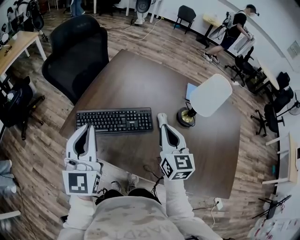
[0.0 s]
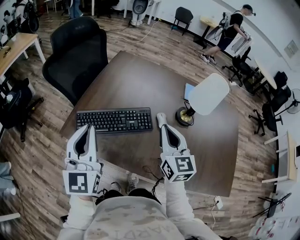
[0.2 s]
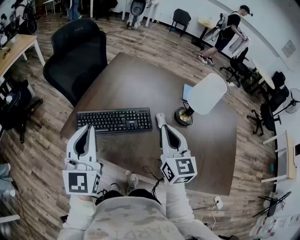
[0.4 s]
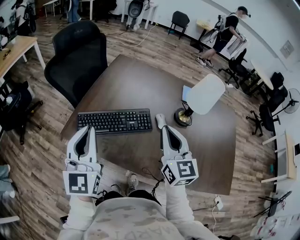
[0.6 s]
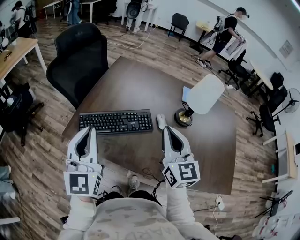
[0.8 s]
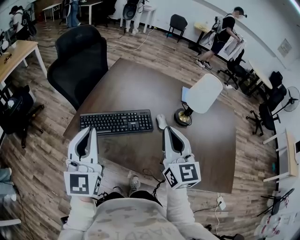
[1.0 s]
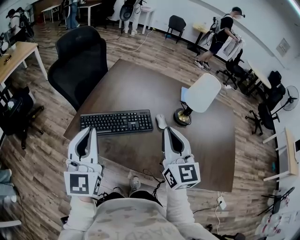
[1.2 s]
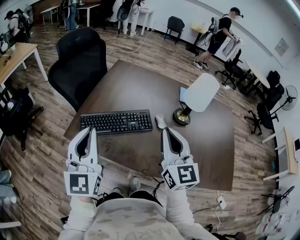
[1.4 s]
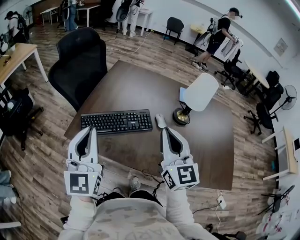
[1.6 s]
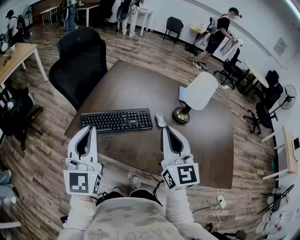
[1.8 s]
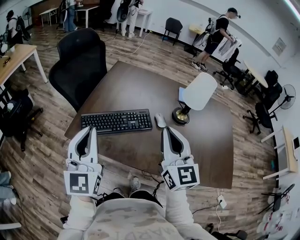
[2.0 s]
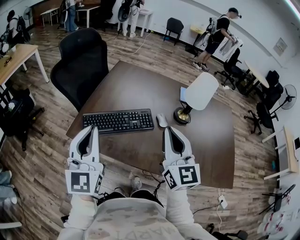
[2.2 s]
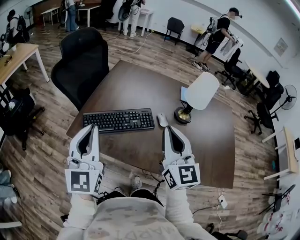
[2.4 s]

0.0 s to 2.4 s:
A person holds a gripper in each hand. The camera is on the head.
0.0 to 1.2 s: The right gripper goes about 15 cm upward and backward; the left gripper heads backward, covering roughly 5 cm.
1.2 to 2.4 s: The grippers make only small movements.

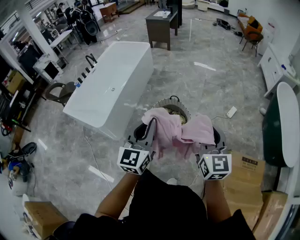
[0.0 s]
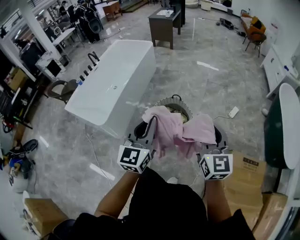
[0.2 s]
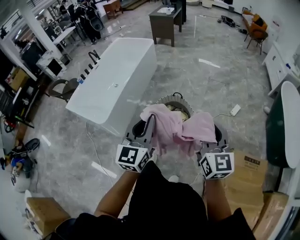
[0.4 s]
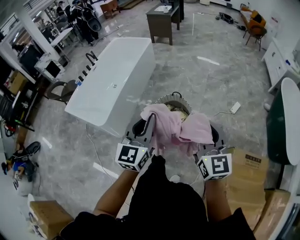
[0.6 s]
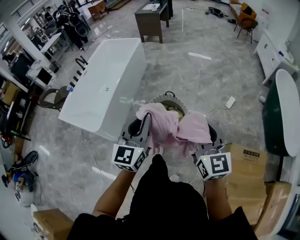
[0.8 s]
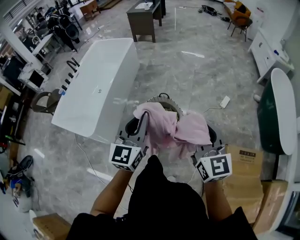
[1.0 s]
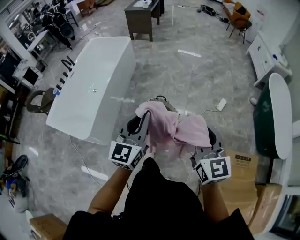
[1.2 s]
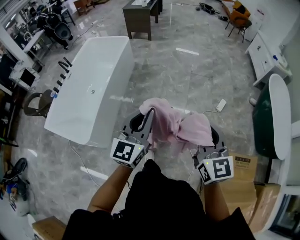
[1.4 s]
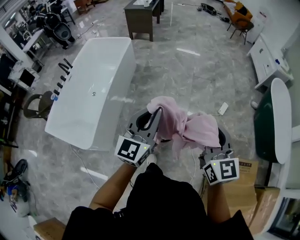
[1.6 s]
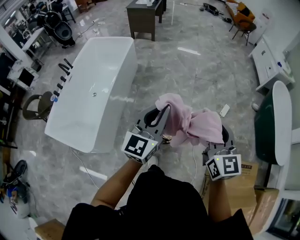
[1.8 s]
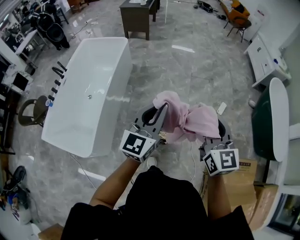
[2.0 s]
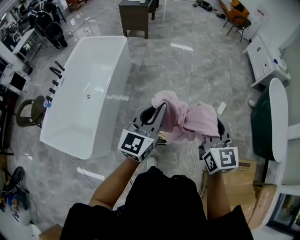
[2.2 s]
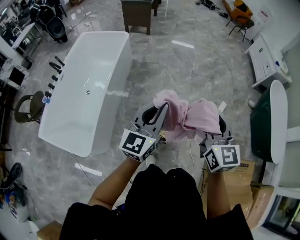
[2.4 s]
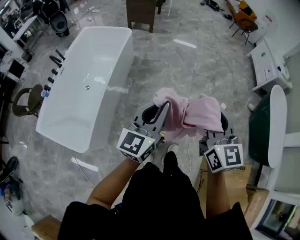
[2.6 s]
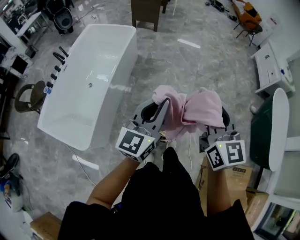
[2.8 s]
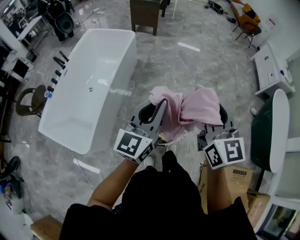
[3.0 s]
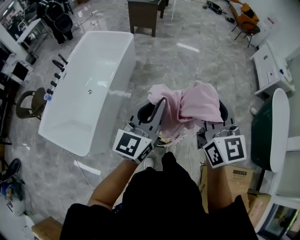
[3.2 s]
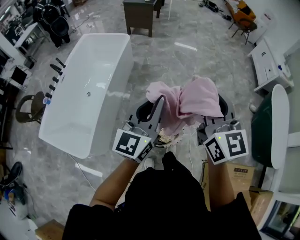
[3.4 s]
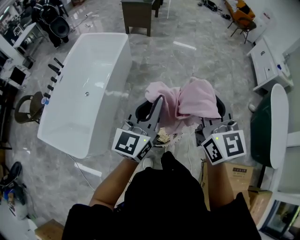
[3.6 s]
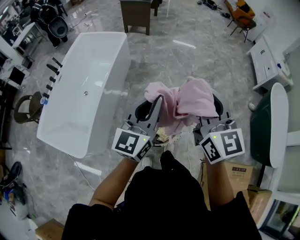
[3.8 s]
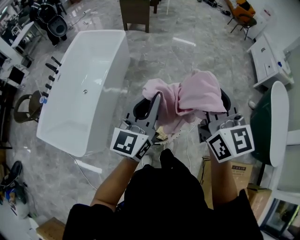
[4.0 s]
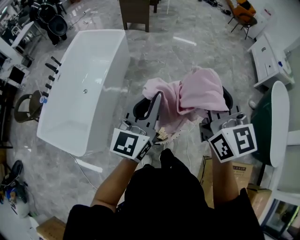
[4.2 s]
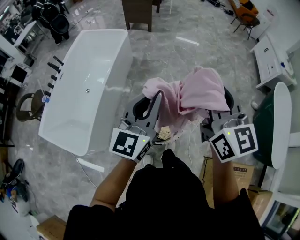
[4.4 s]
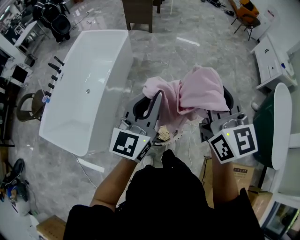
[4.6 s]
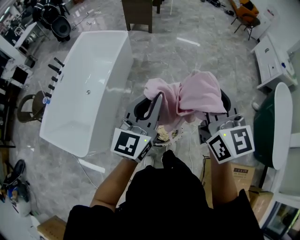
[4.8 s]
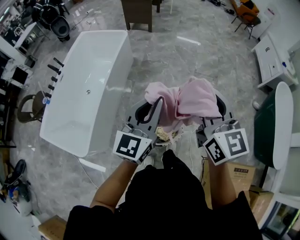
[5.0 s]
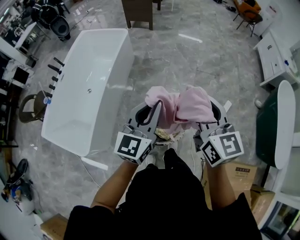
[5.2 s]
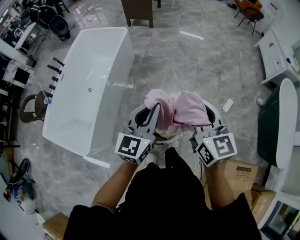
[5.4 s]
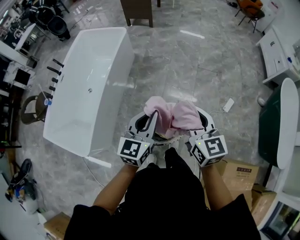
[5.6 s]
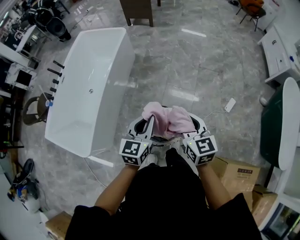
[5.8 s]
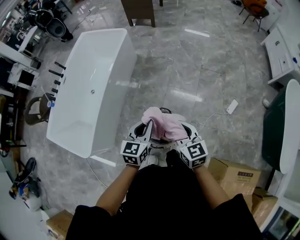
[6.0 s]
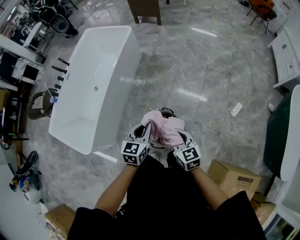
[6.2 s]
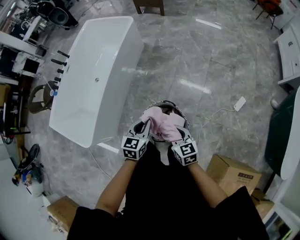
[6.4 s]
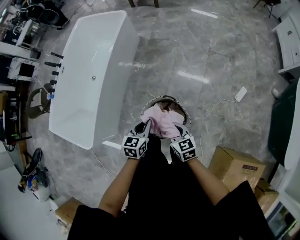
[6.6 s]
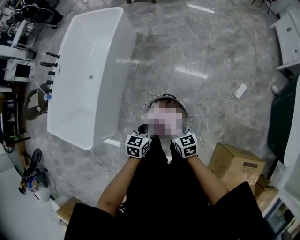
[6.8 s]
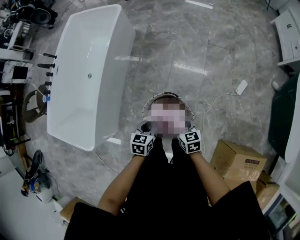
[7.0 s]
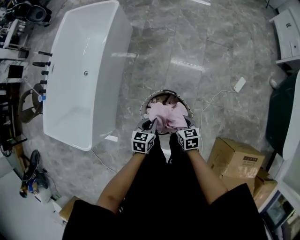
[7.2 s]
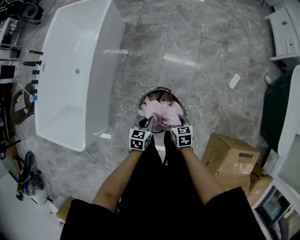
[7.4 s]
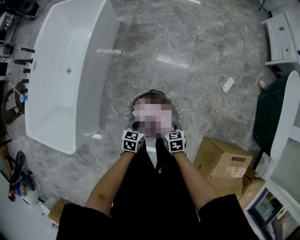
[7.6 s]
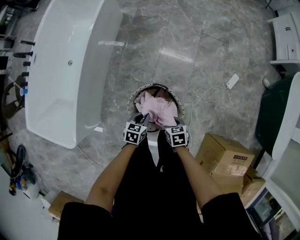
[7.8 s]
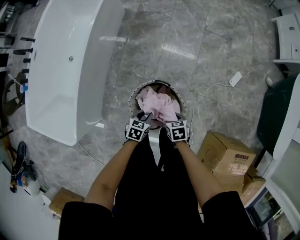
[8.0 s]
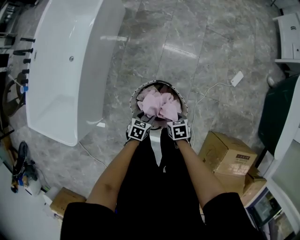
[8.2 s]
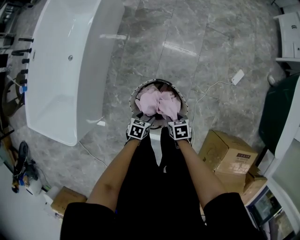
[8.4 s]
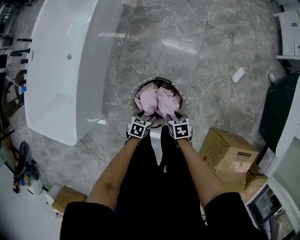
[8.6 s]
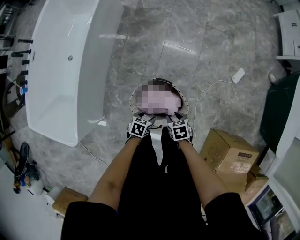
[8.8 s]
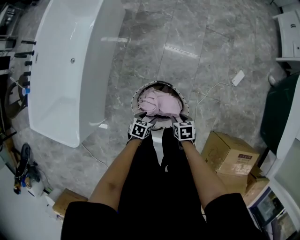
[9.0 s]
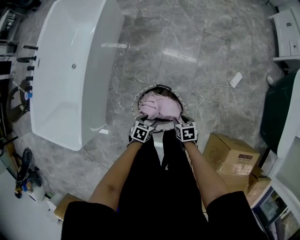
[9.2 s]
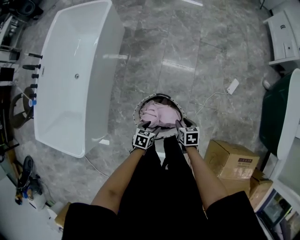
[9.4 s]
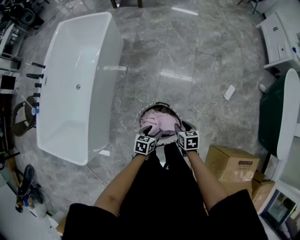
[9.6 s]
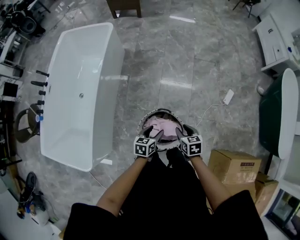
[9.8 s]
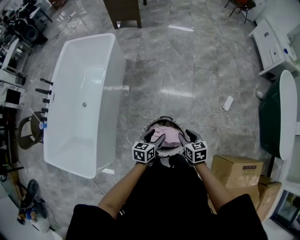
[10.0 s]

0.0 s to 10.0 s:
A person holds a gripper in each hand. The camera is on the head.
0.0 to 1.4 s: The two grippers go some 20 cm forward.
1.4 to 2.8 s: Both grippers travel together forward and to the left, roughly 25 cm.
2.8 to 4.2 s: The right gripper is displaced upward and forward by about 10 cm, while the left gripper shifts about 5 cm to the right.
4.2 to 5.8 s: Both grippers move downward, some 20 cm. The left gripper turns by some 30 degrees. Meanwhile the right gripper rotates some 20 degrees.
5.8 to 7.2 s: Both grippers move downward, approximately 30 cm. The right gripper changes its angle by some 30 degrees, while the left gripper changes its angle by some 30 degrees.
7.2 to 8.6 s: The two grippers go about 20 cm downward. The left gripper changes its angle by approximately 20 degrees, and opens. The right gripper turns by about 20 degrees, and opens up.
8.6 to 10.0 s: The two grippers go about 25 cm upward. The right gripper changes its angle by roughly 30 degrees, while the left gripper changes its angle by some 30 degrees.

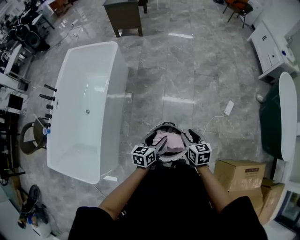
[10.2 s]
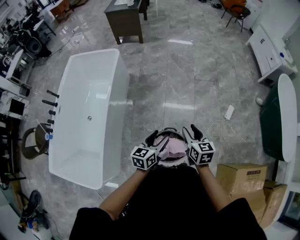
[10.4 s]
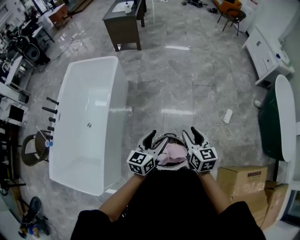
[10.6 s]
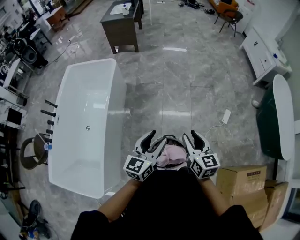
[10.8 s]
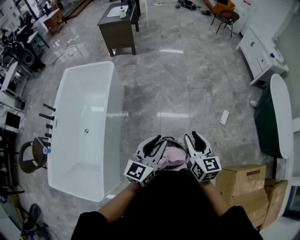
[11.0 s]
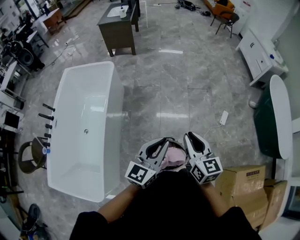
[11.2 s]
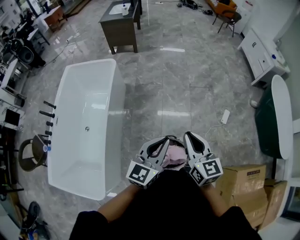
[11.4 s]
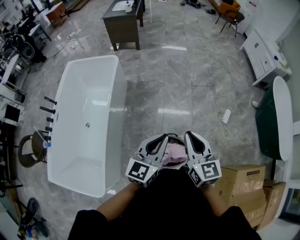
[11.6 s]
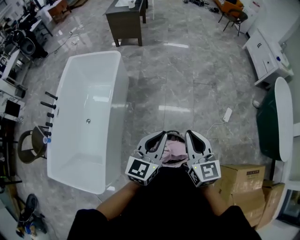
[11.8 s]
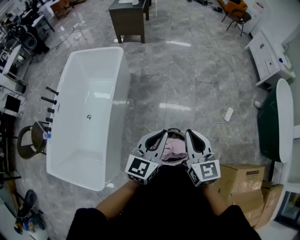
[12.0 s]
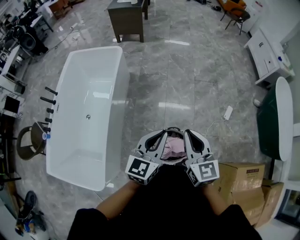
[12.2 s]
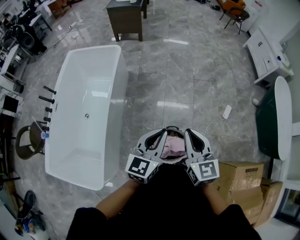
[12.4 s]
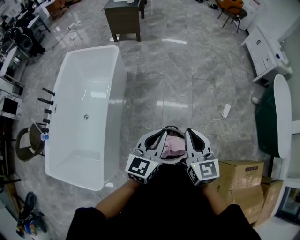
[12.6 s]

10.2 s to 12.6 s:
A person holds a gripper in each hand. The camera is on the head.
10.2 to 11.4 s: The right gripper shifts some 25 cm upward and to the left, swivels approximately 30 degrees, and closes up, while the left gripper shifts roughly 25 cm upward, swivels roughly 30 degrees, and closes.
11.4 to 12.6 s: The left gripper ends up roughly 5 cm from where it was.

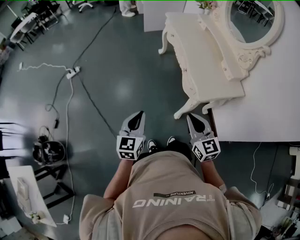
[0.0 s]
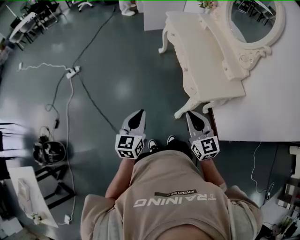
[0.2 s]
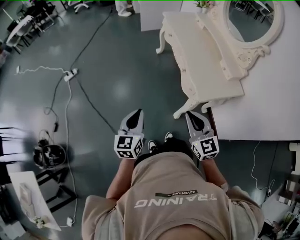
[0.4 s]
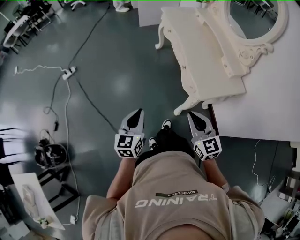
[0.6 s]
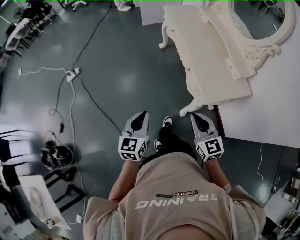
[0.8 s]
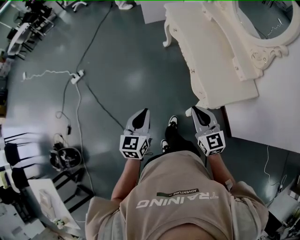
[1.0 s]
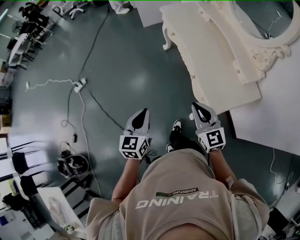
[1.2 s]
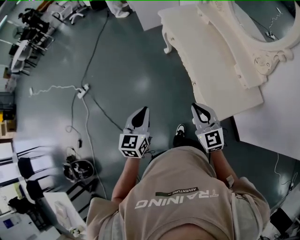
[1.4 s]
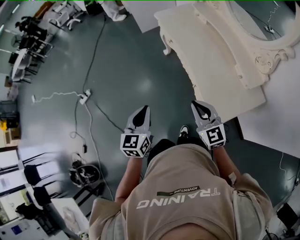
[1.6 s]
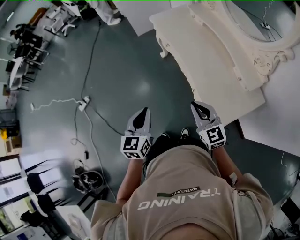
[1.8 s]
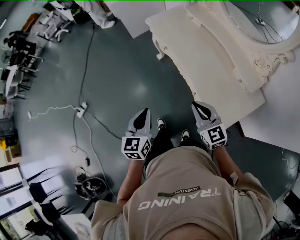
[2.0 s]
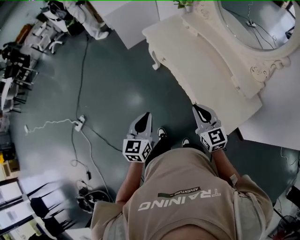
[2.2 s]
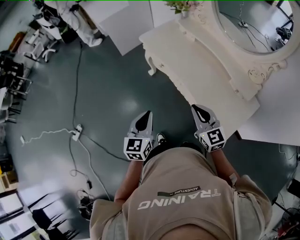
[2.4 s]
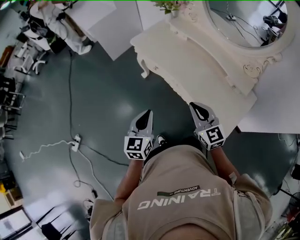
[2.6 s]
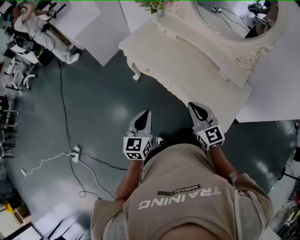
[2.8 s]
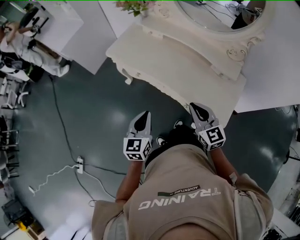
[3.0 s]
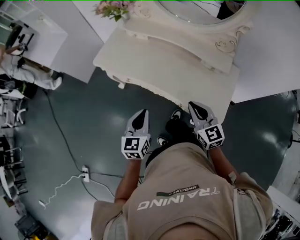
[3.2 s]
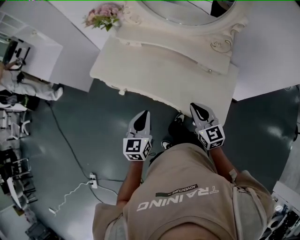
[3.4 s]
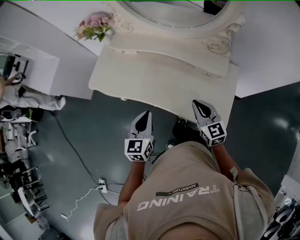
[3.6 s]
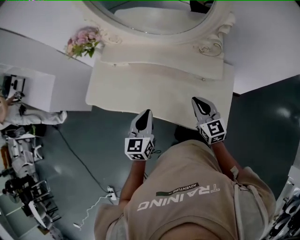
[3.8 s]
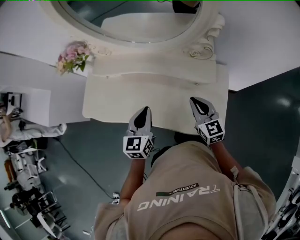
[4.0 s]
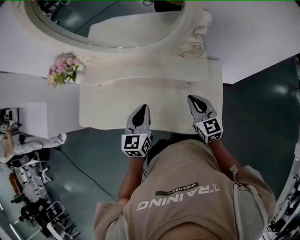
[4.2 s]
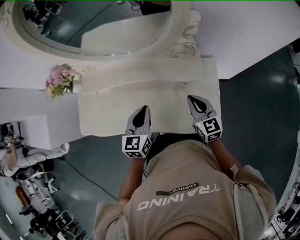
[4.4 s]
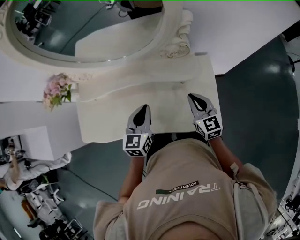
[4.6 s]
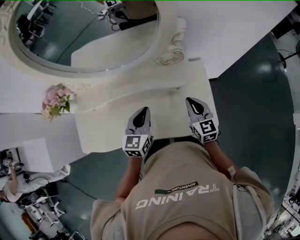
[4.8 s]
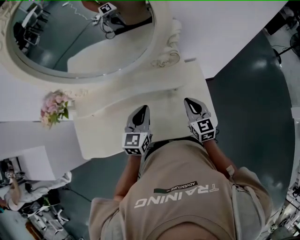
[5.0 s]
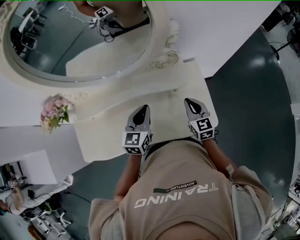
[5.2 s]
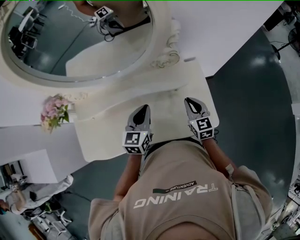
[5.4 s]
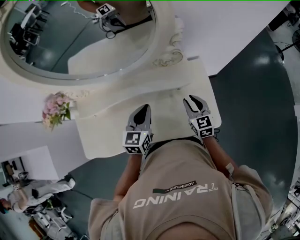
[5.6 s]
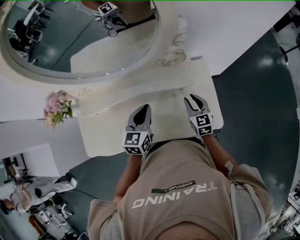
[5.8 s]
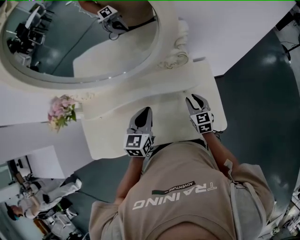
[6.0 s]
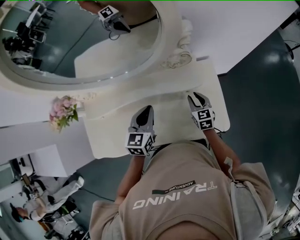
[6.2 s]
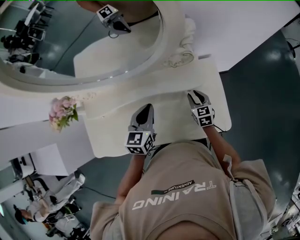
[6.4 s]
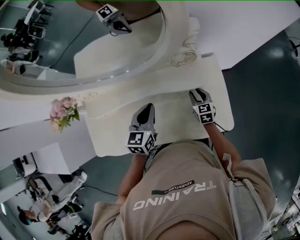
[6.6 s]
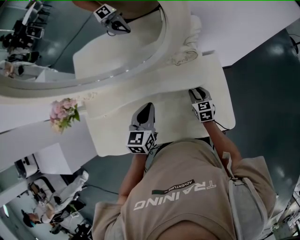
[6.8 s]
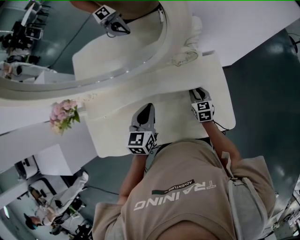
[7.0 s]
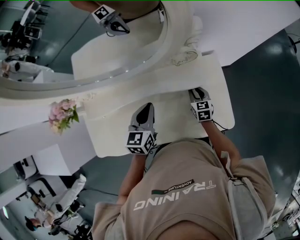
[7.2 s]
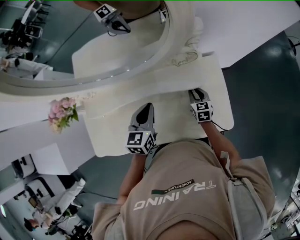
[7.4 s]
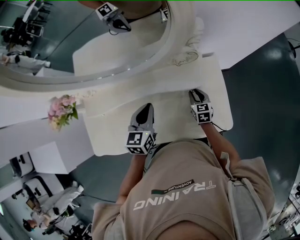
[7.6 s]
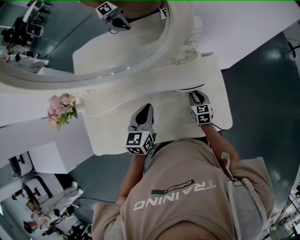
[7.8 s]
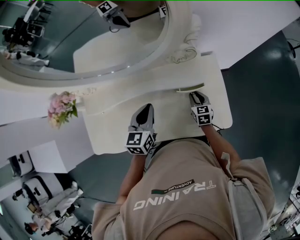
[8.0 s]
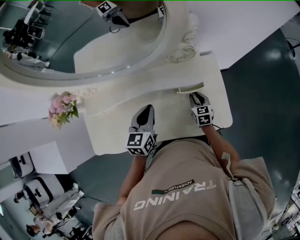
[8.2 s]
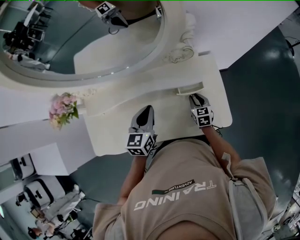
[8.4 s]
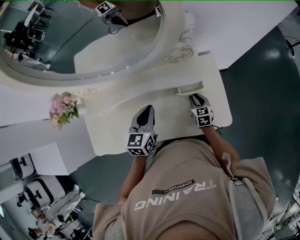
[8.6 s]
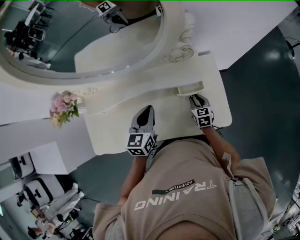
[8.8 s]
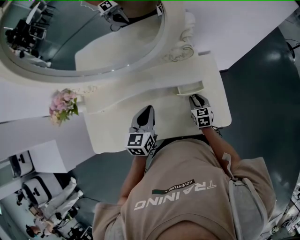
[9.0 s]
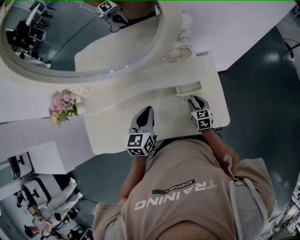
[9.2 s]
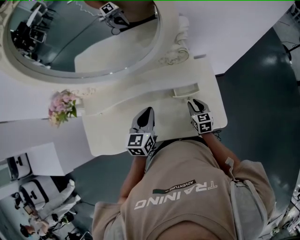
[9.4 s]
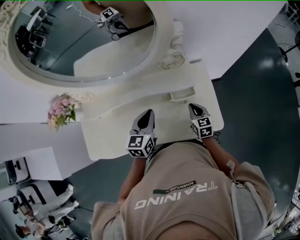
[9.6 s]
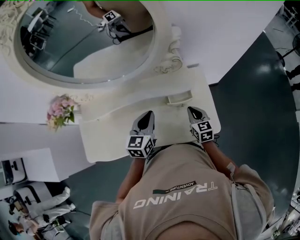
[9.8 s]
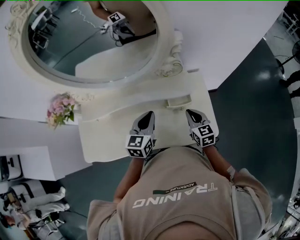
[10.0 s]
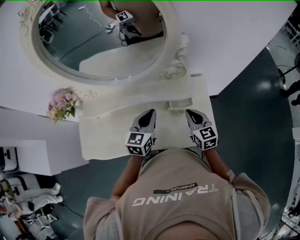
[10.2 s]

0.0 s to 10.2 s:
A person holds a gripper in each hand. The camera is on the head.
0.0 to 1.4 s: The grippers both shift forward by roughly 25 cm.
1.4 to 3.0 s: The right gripper shifts by roughly 20 cm, and rotates some 40 degrees, while the left gripper shifts by about 30 cm, and swivels approximately 40 degrees.
3.0 to 4.4 s: The left gripper changes place by some 35 cm, and swivels roughly 30 degrees; the right gripper changes place by some 25 cm, and swivels roughly 40 degrees.
4.4 to 5.8 s: The left gripper goes about 5 cm forward. Meanwhile the right gripper moves downward, roughly 5 cm, and opens its fingers.
5.8 to 7.2 s: The right gripper goes approximately 10 cm downward and forward.
7.2 to 8.8 s: The right gripper moves backward, roughly 5 cm.
8.8 to 10.2 s: The right gripper goes about 20 cm upward, turns by approximately 20 degrees, and closes; the left gripper moves to the right, roughly 5 cm.
